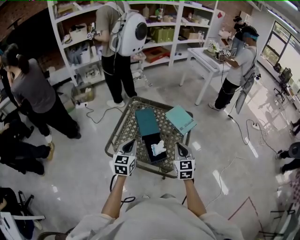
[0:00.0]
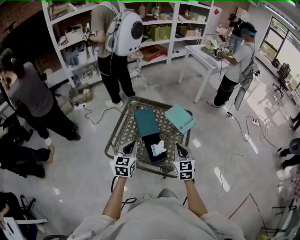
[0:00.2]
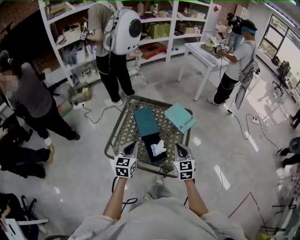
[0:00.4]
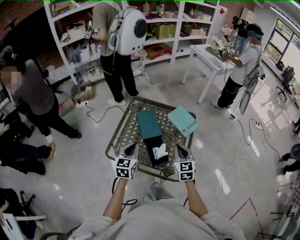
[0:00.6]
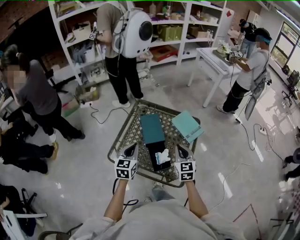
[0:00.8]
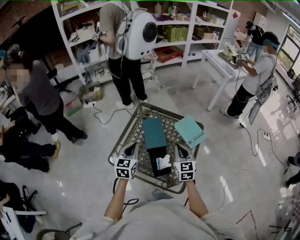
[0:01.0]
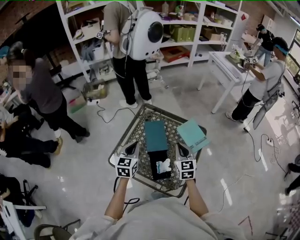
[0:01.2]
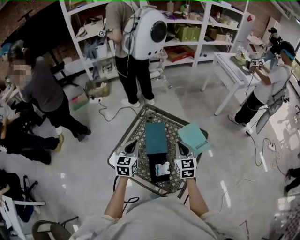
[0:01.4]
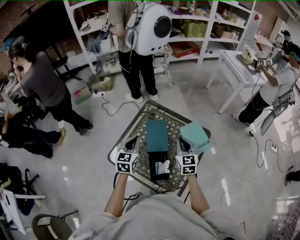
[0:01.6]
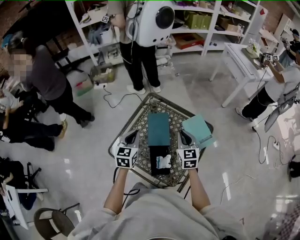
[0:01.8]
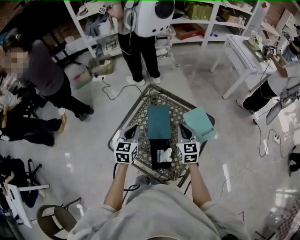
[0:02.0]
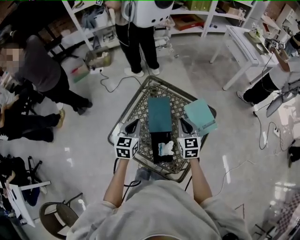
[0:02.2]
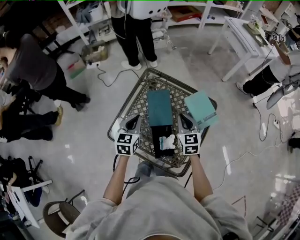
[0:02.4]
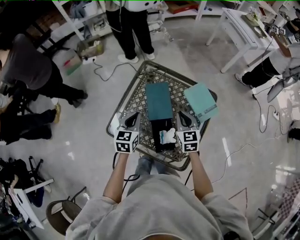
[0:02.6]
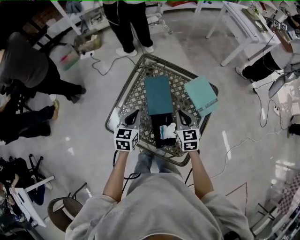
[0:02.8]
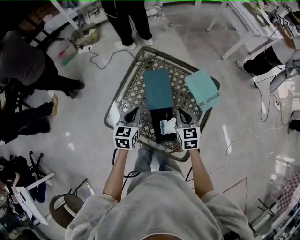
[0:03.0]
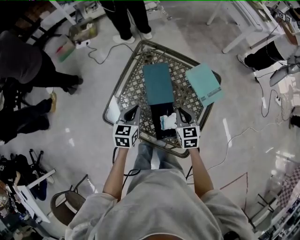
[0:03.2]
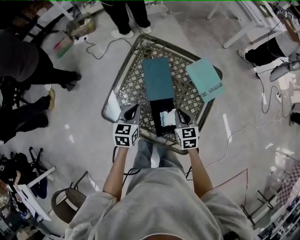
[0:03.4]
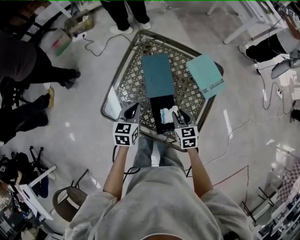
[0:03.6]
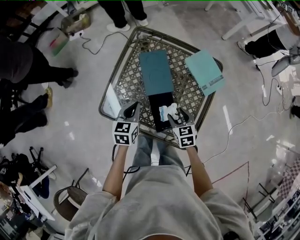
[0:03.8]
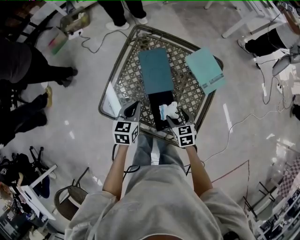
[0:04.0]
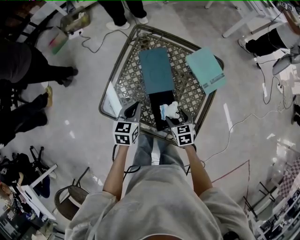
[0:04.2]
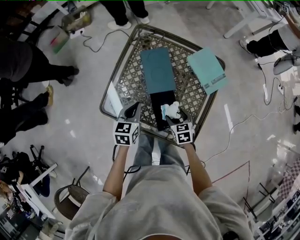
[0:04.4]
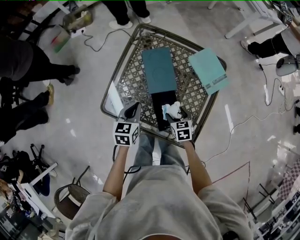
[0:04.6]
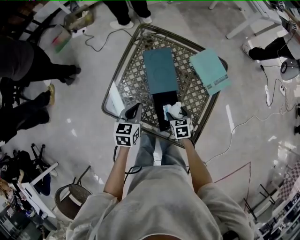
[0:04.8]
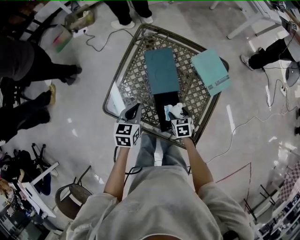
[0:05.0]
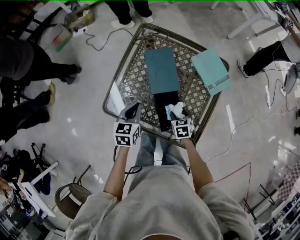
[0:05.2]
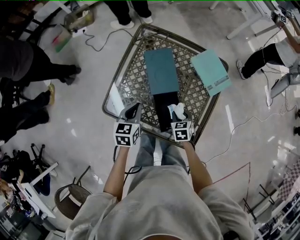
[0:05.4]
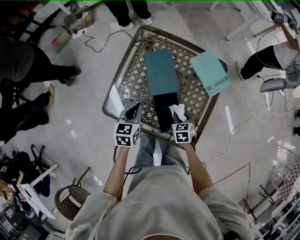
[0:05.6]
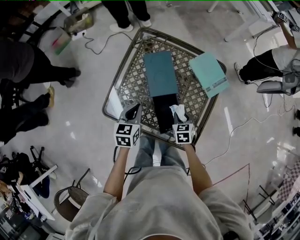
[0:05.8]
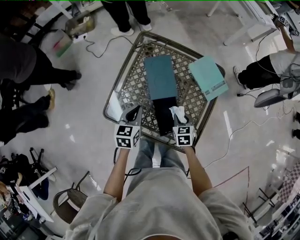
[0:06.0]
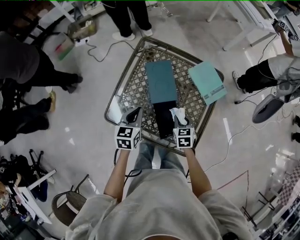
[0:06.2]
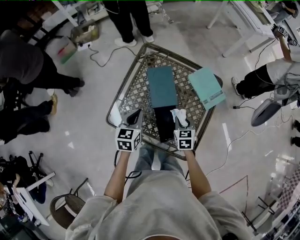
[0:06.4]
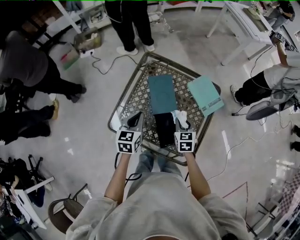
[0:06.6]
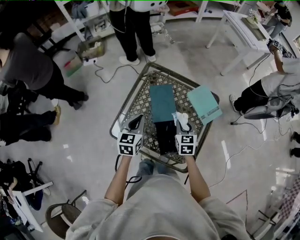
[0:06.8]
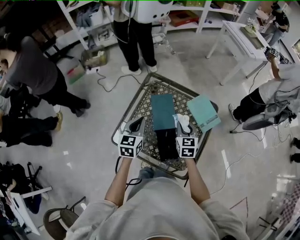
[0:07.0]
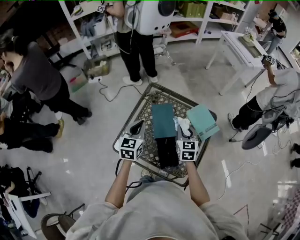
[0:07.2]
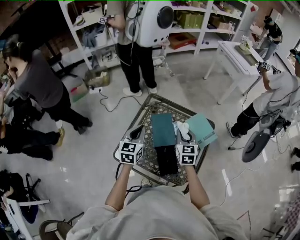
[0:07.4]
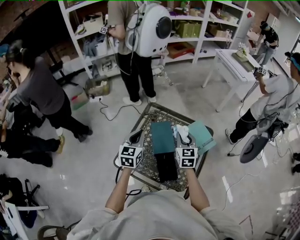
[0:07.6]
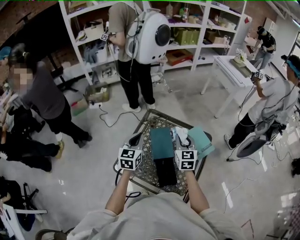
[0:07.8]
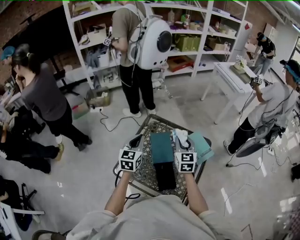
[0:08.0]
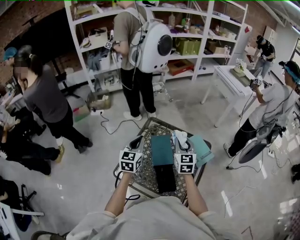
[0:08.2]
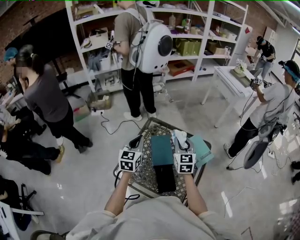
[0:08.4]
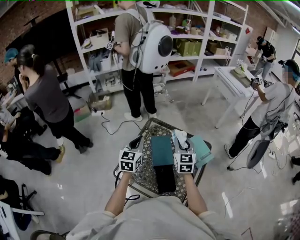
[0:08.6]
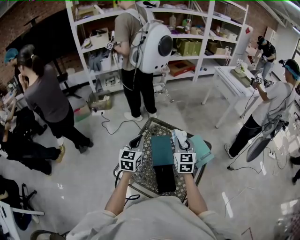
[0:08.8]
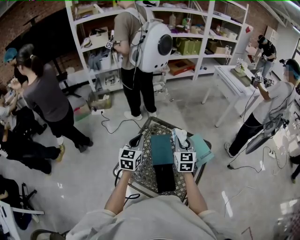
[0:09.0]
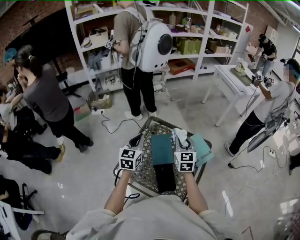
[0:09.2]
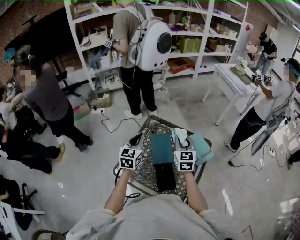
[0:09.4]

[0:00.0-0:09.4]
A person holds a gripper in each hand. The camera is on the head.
0:00.0 to 0:01.6: Both grippers travel together forward, roughly 20 cm.
0:01.6 to 0:03.2: The left gripper goes some 10 cm downward; the right gripper moves downward and backward, some 15 cm.
0:03.2 to 0:04.8: The right gripper moves downward and backward, some 15 cm, changes its angle by some 20 degrees, and opens up, while the left gripper shifts by roughly 5 cm.
0:04.8 to 0:06.2: The right gripper is displaced upward by some 5 cm, and closes its fingers.
0:06.2 to 0:07.8: The right gripper is displaced upward and forward by some 30 cm, and tips its fingers upward by about 30 degrees. Meanwhile the left gripper is displaced upward and forward by approximately 20 cm, and swivels roughly 20 degrees.
0:07.8 to 0:09.4: There are only small adjustments of the grippers.

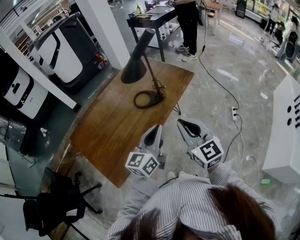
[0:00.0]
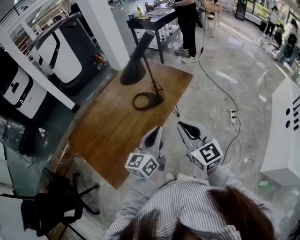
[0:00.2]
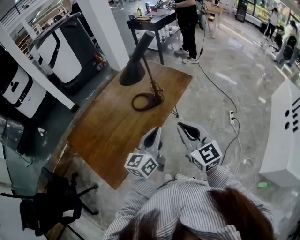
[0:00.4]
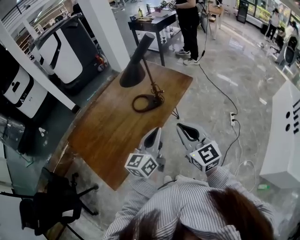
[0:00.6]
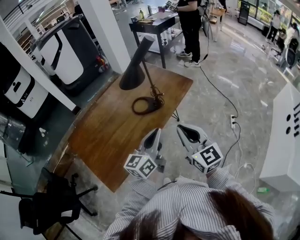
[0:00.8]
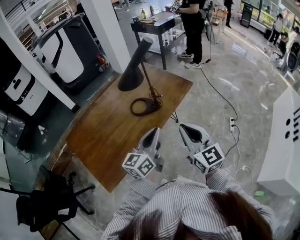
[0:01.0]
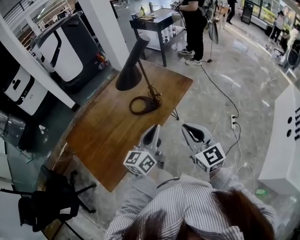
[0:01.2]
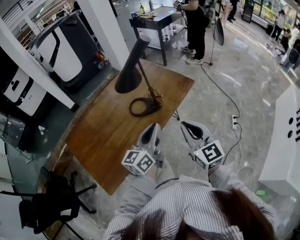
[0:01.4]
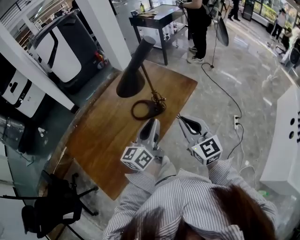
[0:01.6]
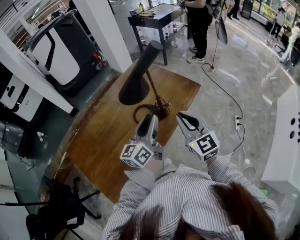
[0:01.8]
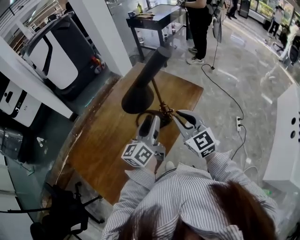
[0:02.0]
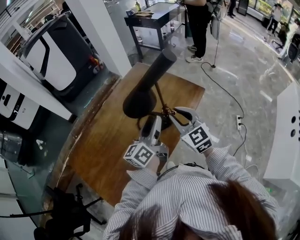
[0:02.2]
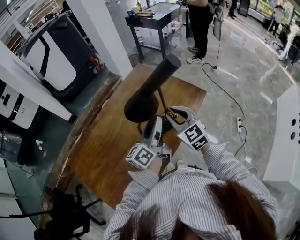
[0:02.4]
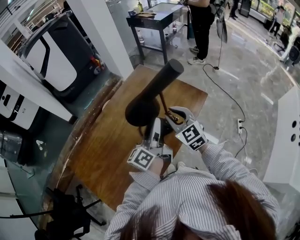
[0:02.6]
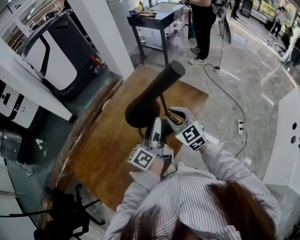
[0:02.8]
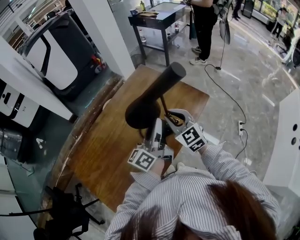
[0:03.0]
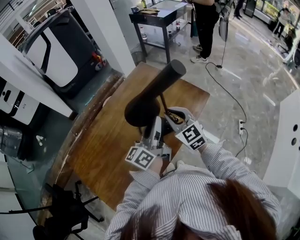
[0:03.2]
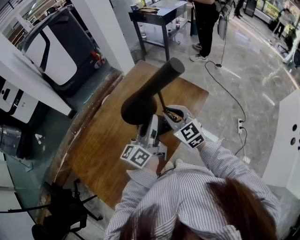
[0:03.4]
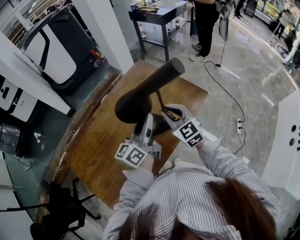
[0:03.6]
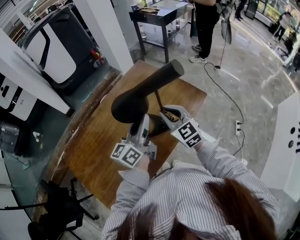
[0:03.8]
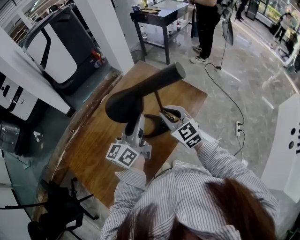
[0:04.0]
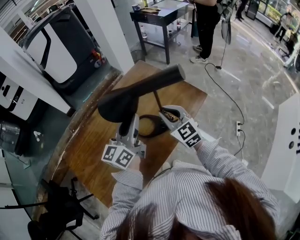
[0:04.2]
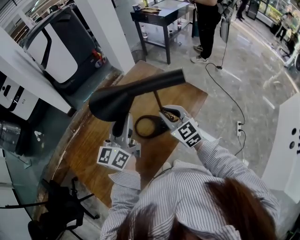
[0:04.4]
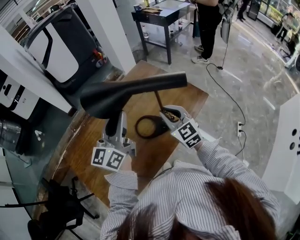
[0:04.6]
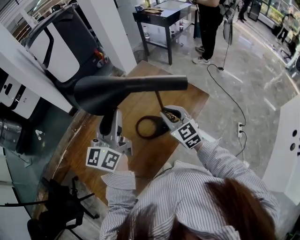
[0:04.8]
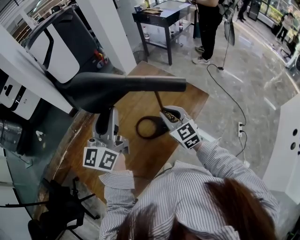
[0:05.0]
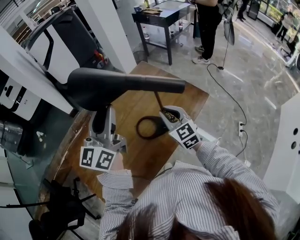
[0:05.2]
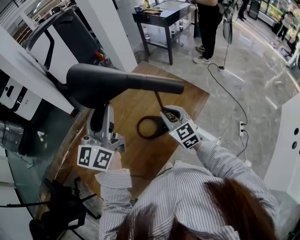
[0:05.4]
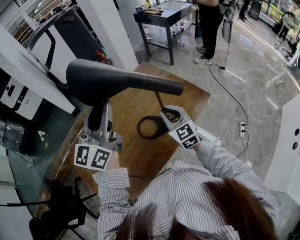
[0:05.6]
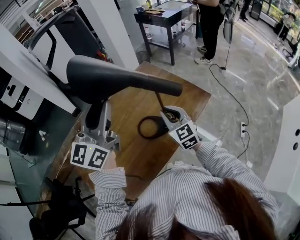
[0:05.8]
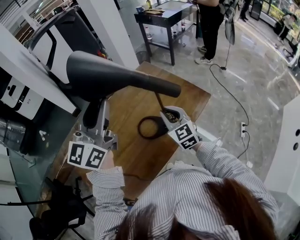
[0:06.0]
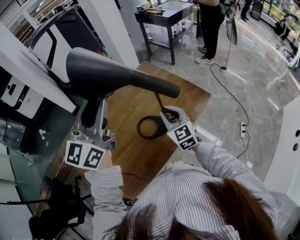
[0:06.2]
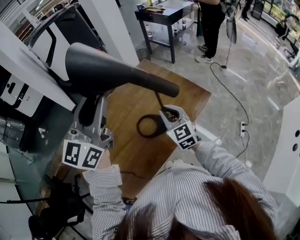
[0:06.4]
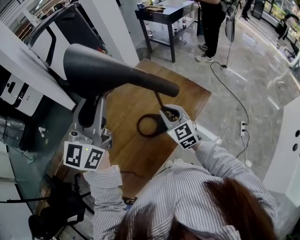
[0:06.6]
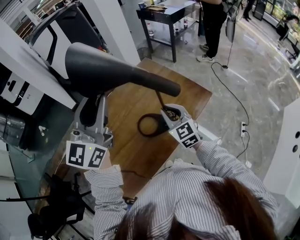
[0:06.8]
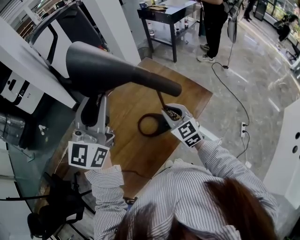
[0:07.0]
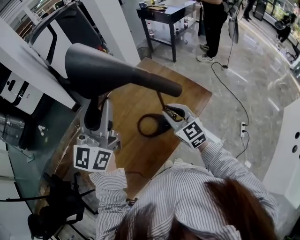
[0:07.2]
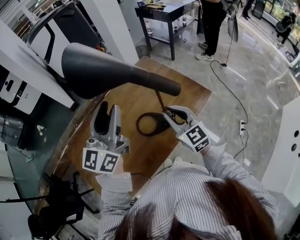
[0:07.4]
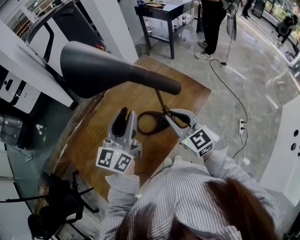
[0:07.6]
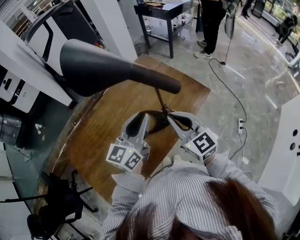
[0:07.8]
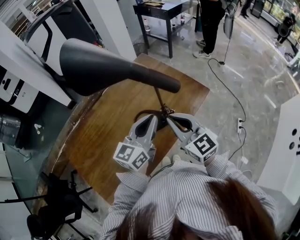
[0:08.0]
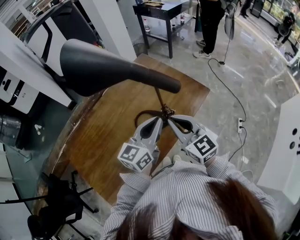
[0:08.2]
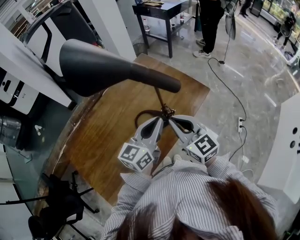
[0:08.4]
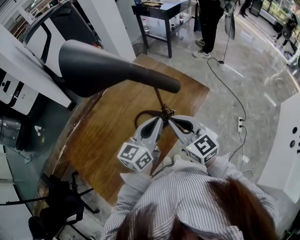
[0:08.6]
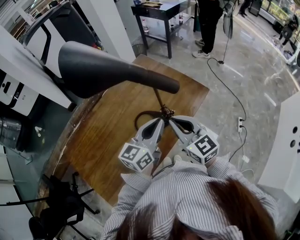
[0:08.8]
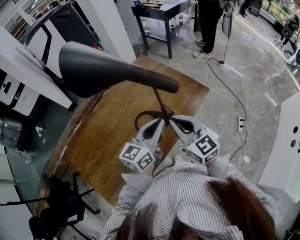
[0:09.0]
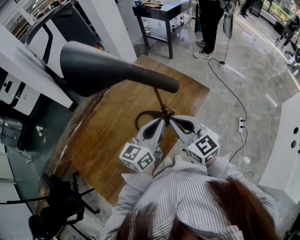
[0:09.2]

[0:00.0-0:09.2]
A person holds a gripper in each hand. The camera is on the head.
0:00.0 to 0:01.6: The grippers both shift forward by about 10 cm.
0:01.6 to 0:03.0: The right gripper goes approximately 25 cm forward and to the left; the left gripper shifts roughly 15 cm forward, changes its angle by roughly 20 degrees, and opens and closes again.
0:03.0 to 0:04.6: The left gripper is displaced to the left and upward by approximately 15 cm, and turns by approximately 40 degrees.
0:04.6 to 0:06.2: The left gripper moves upward, approximately 10 cm.
0:06.2 to 0:07.6: The right gripper goes roughly 5 cm backward. Meanwhile the left gripper is displaced downward by about 10 cm.
0:07.6 to 0:09.2: The left gripper heads to the right and downward, covering some 15 cm, turns by some 20 degrees, and closes its fingers.

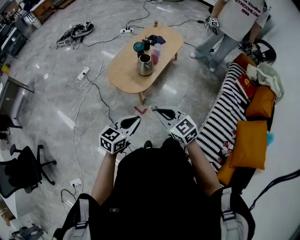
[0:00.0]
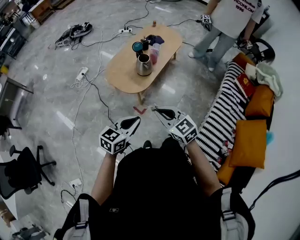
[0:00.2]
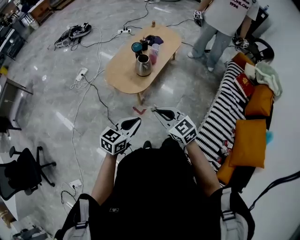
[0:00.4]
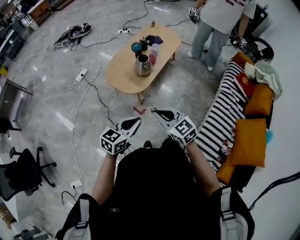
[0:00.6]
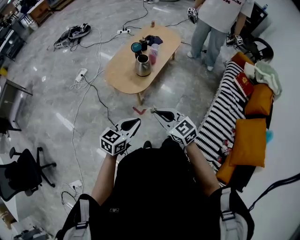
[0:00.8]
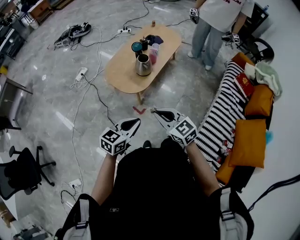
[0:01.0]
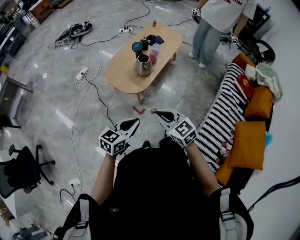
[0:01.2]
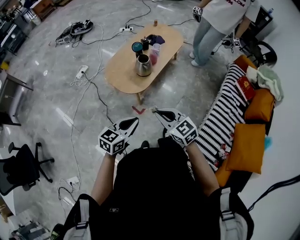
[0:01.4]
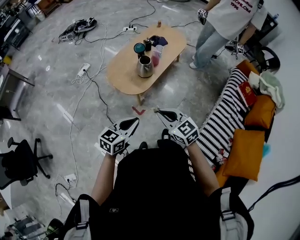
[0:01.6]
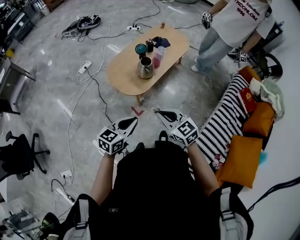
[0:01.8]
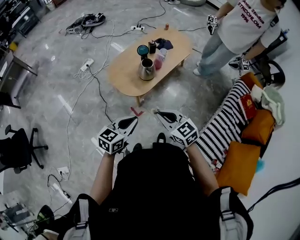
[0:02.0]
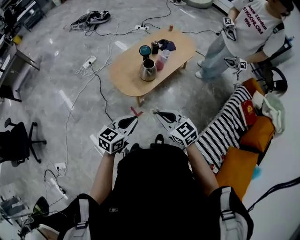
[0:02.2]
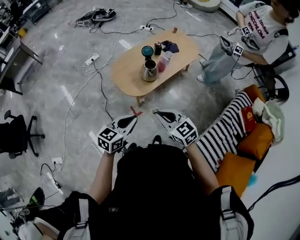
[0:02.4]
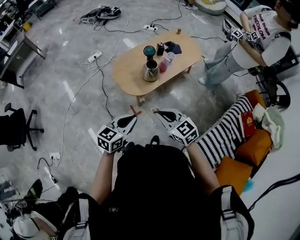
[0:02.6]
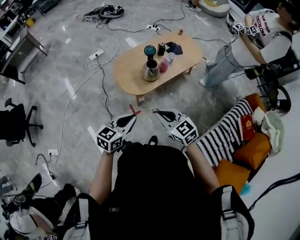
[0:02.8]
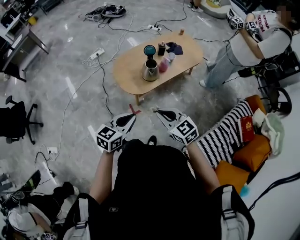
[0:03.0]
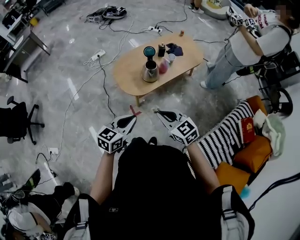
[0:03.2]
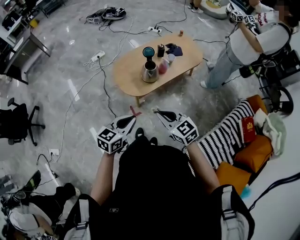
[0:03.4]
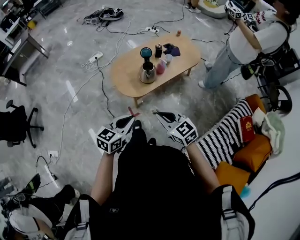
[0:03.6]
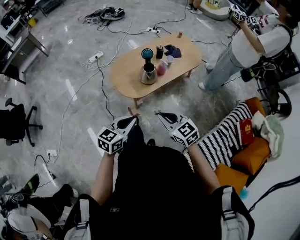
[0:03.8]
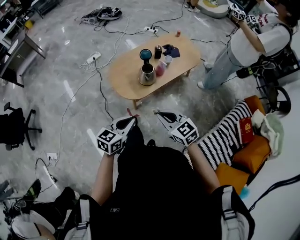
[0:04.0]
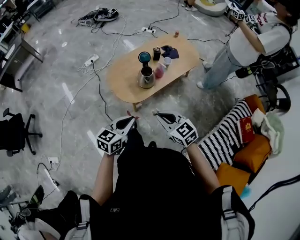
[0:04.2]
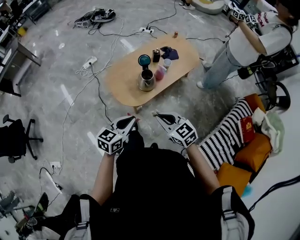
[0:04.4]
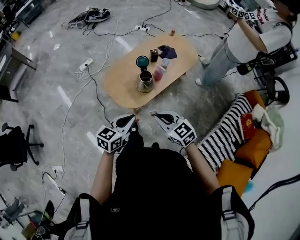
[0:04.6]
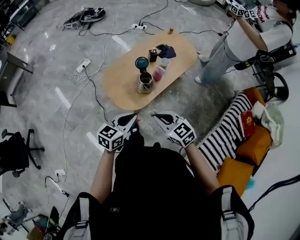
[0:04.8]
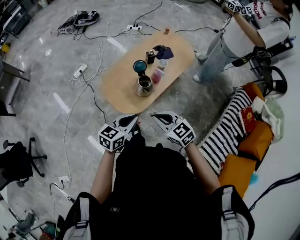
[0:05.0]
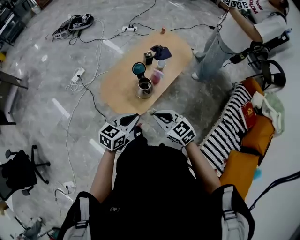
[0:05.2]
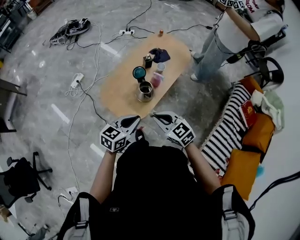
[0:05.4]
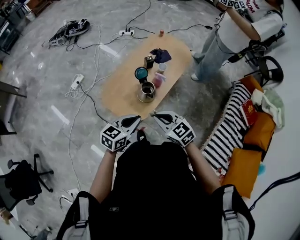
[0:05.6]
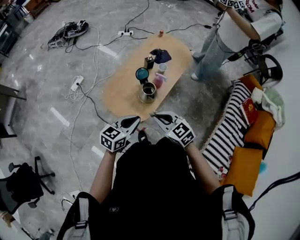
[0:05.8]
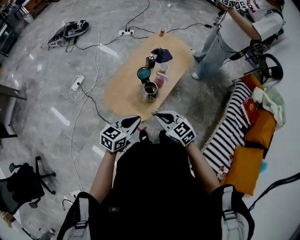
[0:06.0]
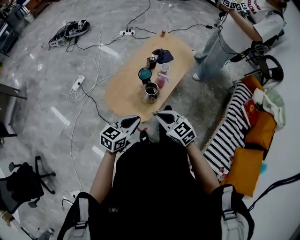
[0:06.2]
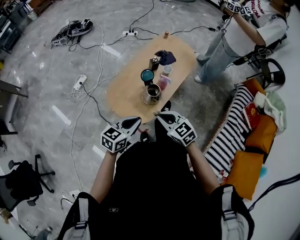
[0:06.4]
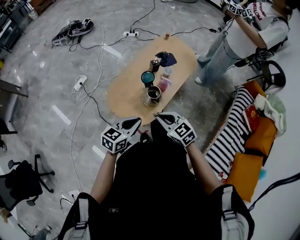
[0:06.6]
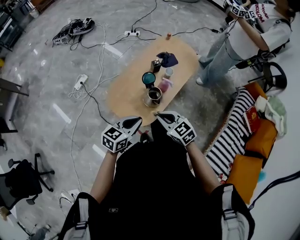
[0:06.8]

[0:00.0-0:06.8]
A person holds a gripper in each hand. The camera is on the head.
0:00.0 to 0:01.4: The grippers stay close to where they were, moving slightly.
0:01.4 to 0:02.8: The grippers both shift to the right and forward by approximately 10 cm. The left gripper swivels about 20 degrees.
0:02.8 to 0:04.0: The right gripper shifts by roughly 5 cm.
0:04.0 to 0:05.4: The left gripper is displaced forward by about 20 cm, and rotates roughly 20 degrees, while the right gripper moves forward and to the left, approximately 20 cm.
0:05.4 to 0:06.8: The right gripper shifts roughly 5 cm forward. Meanwhile the left gripper ends up approximately 5 cm from where it was.
